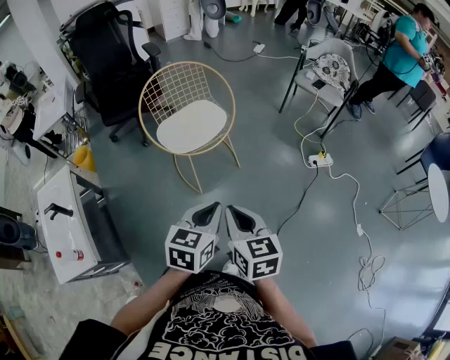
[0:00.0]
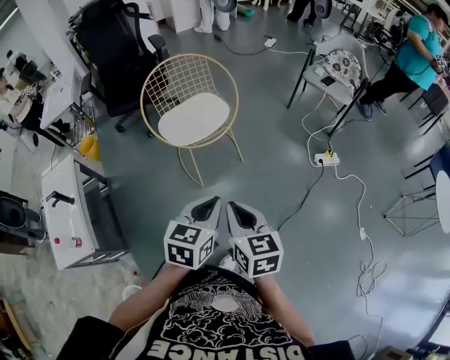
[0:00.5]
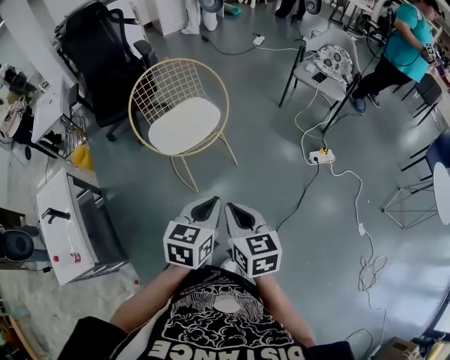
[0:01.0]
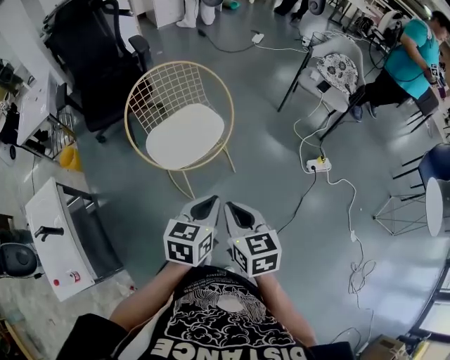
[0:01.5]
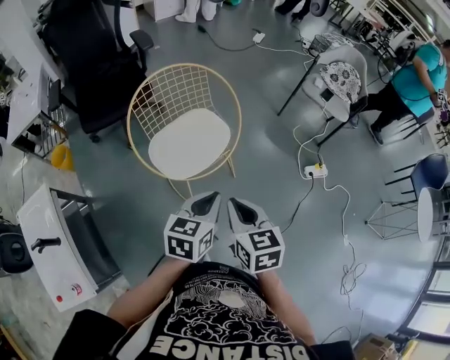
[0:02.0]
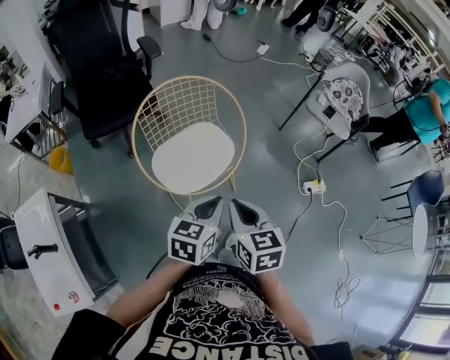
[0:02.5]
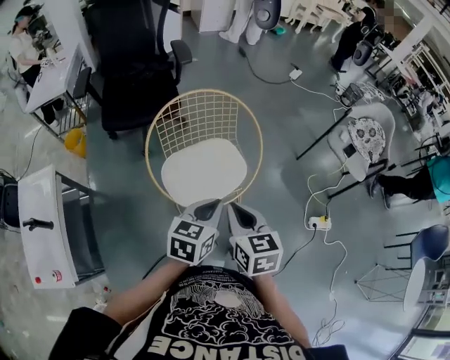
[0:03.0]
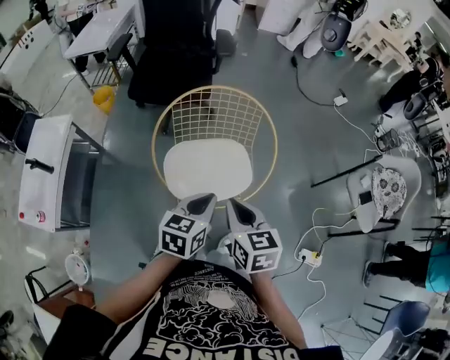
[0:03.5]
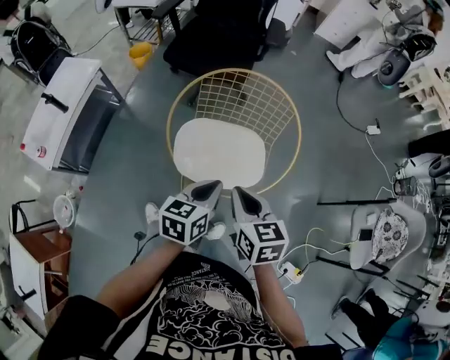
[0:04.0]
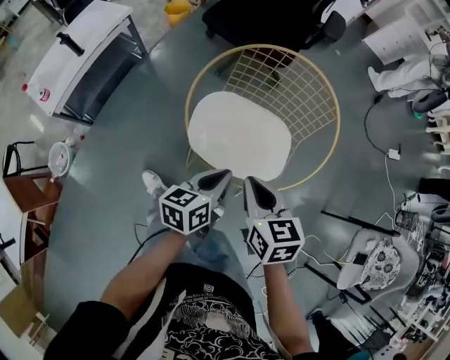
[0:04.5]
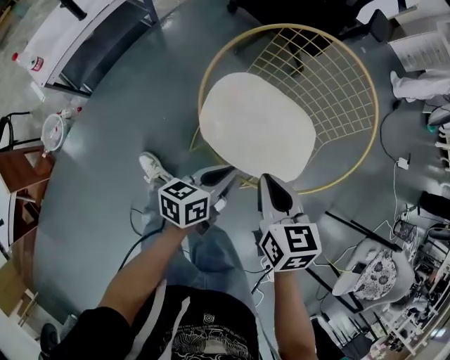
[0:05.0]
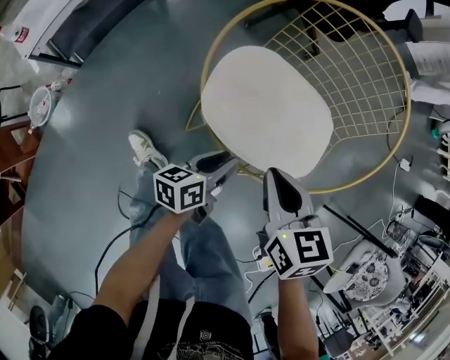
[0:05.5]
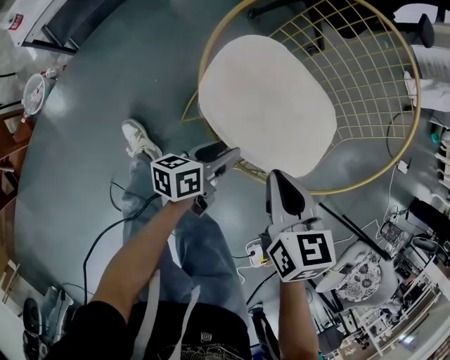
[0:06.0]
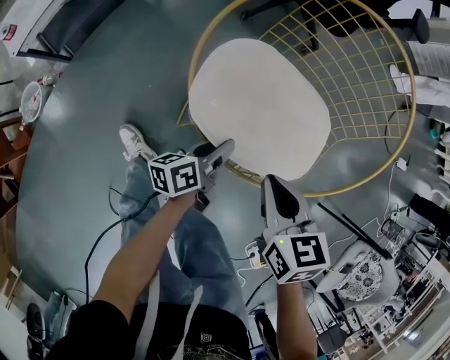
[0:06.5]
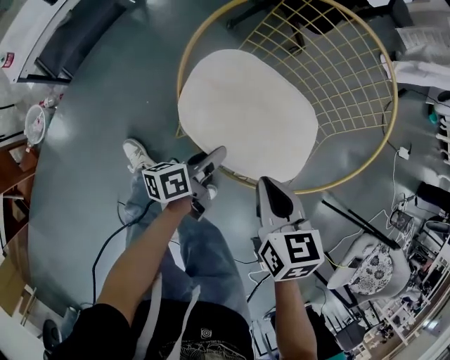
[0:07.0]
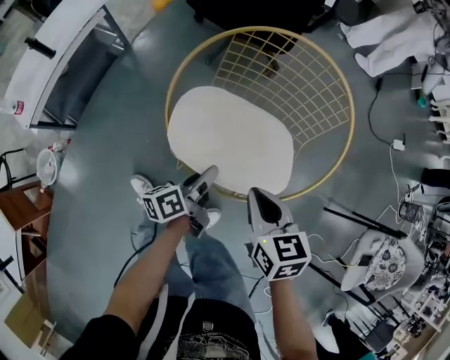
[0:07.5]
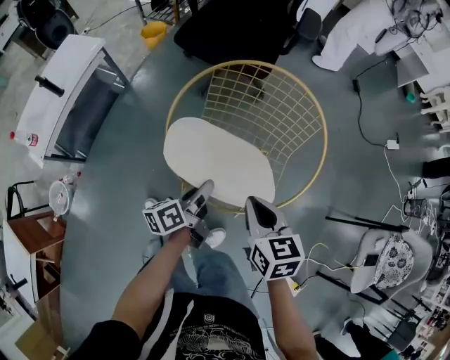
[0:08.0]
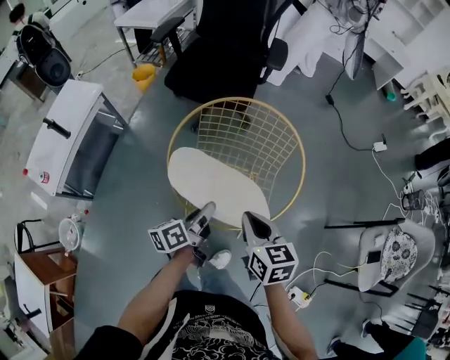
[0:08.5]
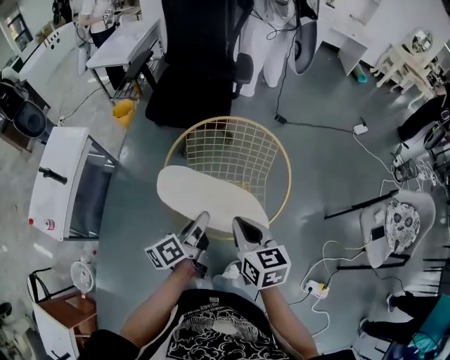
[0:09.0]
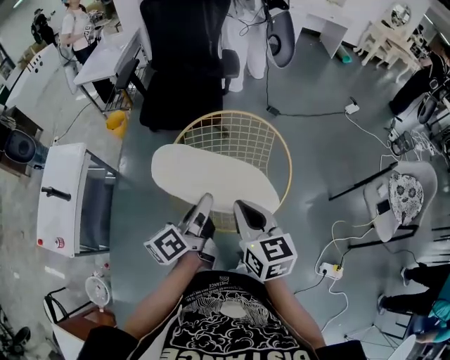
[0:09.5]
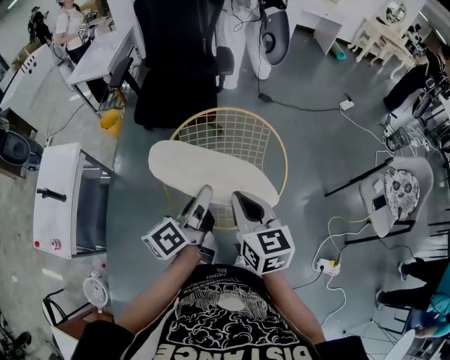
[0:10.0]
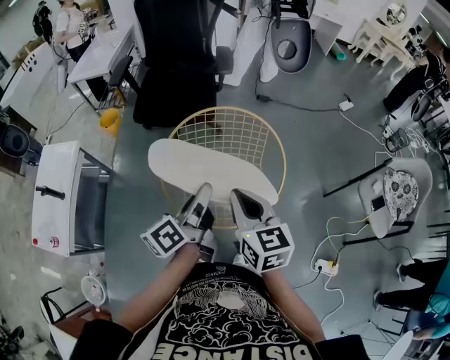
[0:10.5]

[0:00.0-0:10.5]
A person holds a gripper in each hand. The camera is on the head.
0:00.0 to 0:02.0: Both grippers move forward, roughly 25 cm.
0:02.0 to 0:04.0: The right gripper ends up roughly 20 cm from where it was, and swivels approximately 50 degrees. Meanwhile the left gripper moves about 20 cm, and changes its angle by approximately 50 degrees.
0:04.0 to 0:06.5: The left gripper heads downward, covering roughly 30 cm, twists about 40 degrees counterclockwise, seen from behind, and opens up, while the right gripper goes about 20 cm downward, and swivels some 20 degrees.
0:06.5 to 0:08.5: The grippers both shift upward by roughly 20 cm. The right gripper turns by approximately 20 degrees.
0:08.5 to 0:10.5: The right gripper travels upward and to the left by about 15 cm, and changes its angle by some 20 degrees. Meanwhile the left gripper shifts some 15 cm upward.

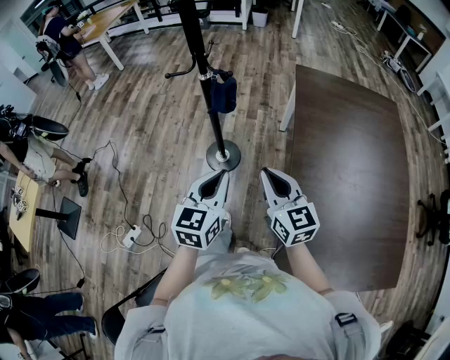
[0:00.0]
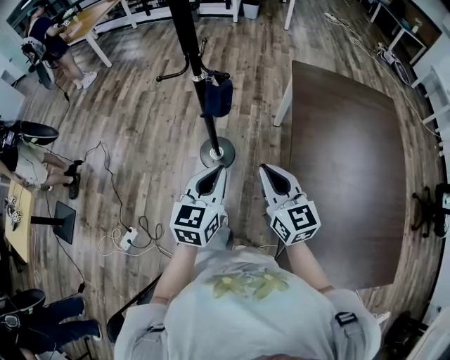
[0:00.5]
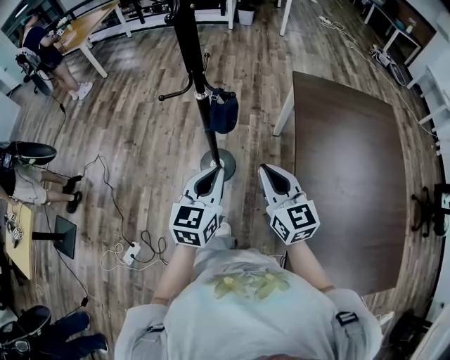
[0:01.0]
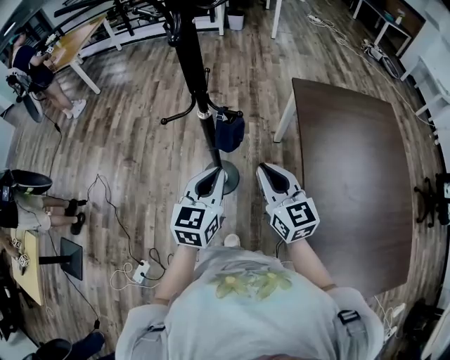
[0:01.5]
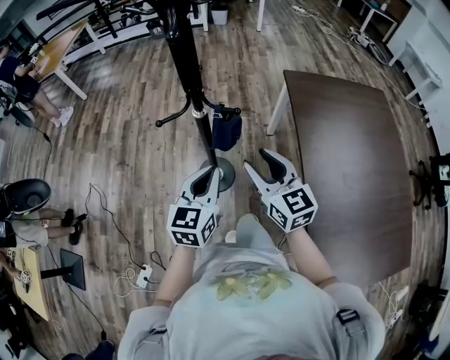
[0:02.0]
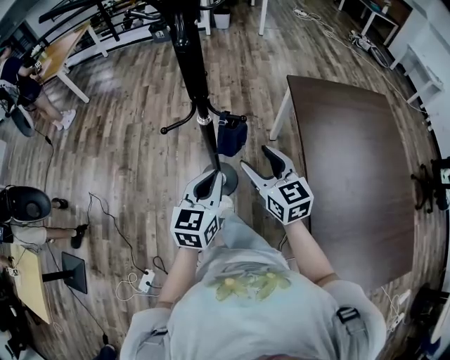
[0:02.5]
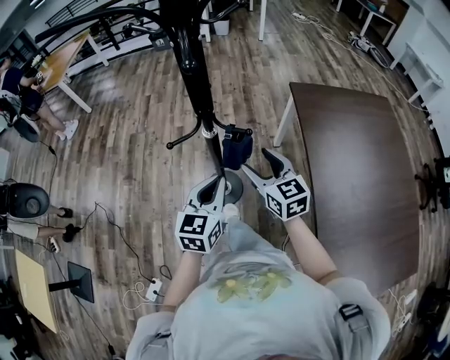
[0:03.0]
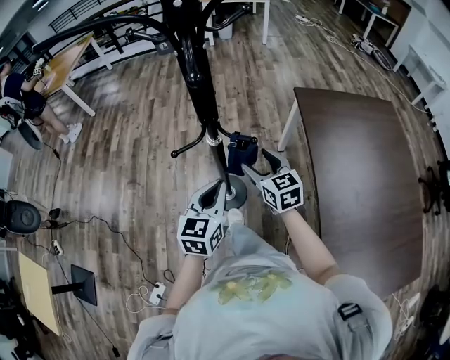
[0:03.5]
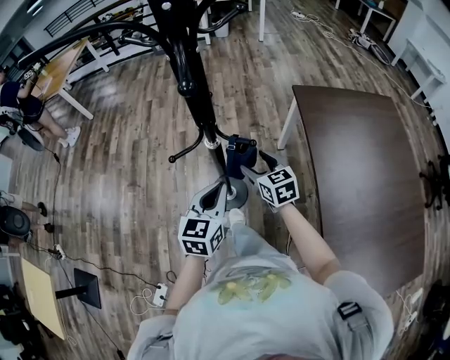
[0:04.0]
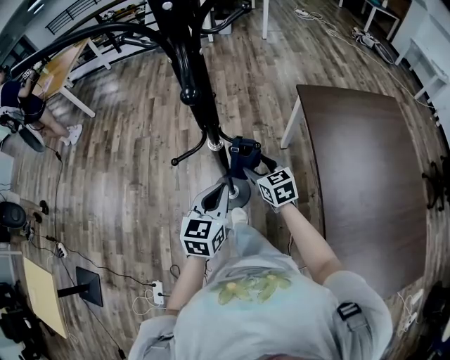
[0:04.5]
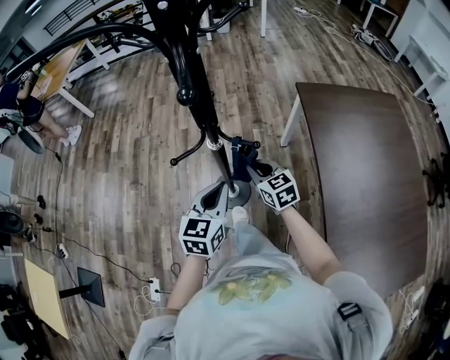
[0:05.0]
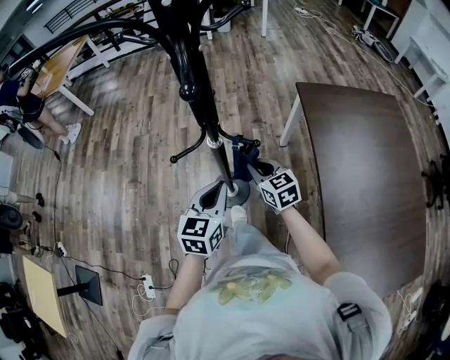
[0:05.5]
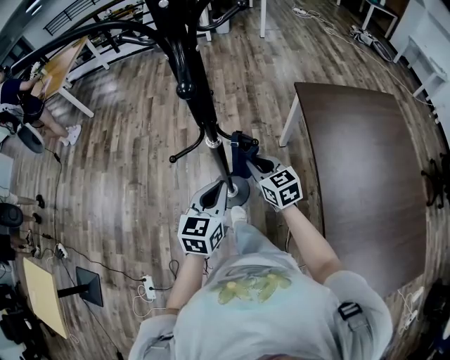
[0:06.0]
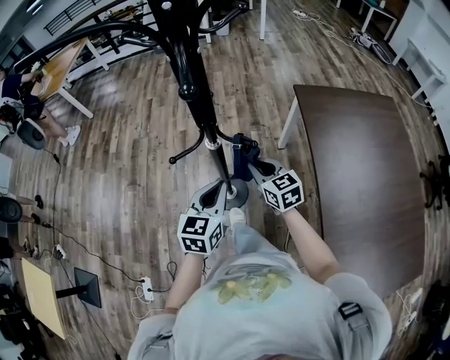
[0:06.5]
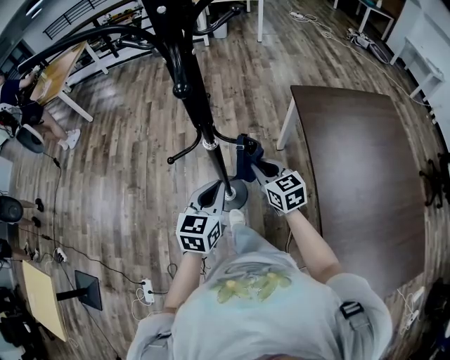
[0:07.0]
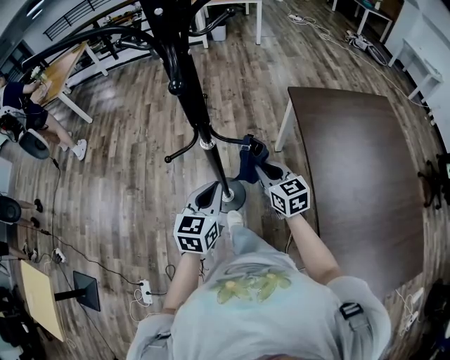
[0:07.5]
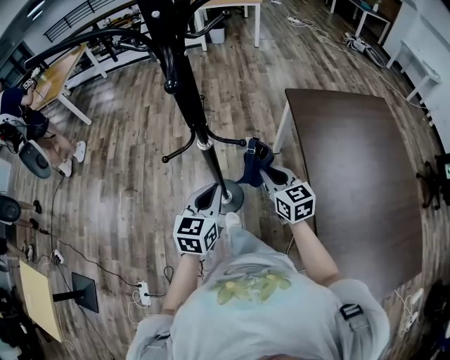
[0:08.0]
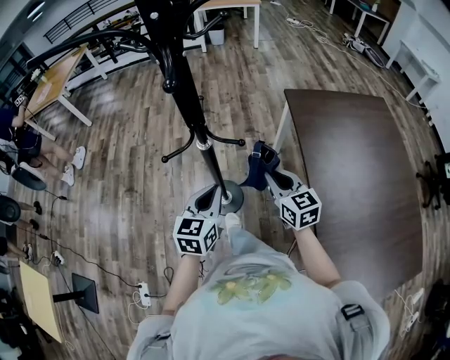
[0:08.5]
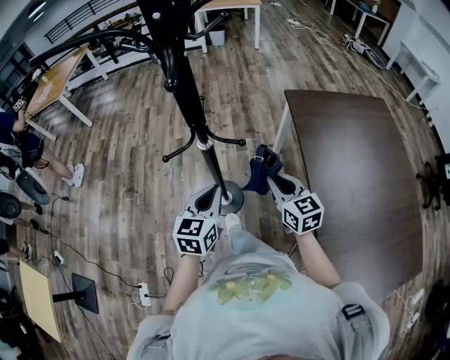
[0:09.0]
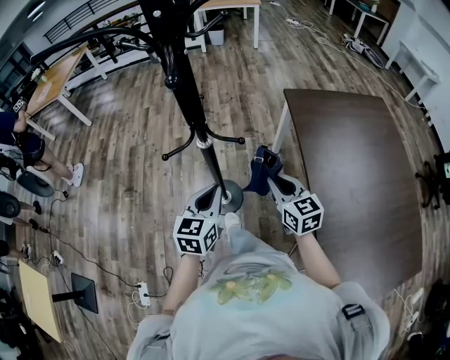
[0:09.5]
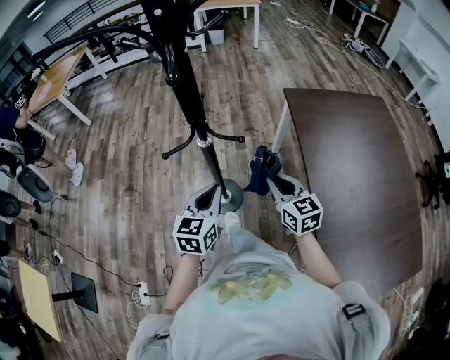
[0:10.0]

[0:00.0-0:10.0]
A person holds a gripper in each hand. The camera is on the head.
0:00.0 to 0:02.0: The two grippers go approximately 20 cm forward and to the left. The right gripper opens its fingers.
0:02.0 to 0:04.0: The left gripper travels forward by roughly 5 cm, while the right gripper travels forward and downward by some 20 cm, and opens its fingers.
0:04.0 to 0:06.0: The right gripper closes up.
0:06.0 to 0:08.0: The right gripper is displaced to the right and backward by about 10 cm.
0:08.0 to 0:10.0: The grippers stay close to where they were, moving slightly.

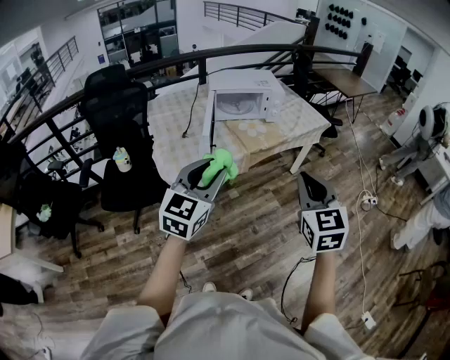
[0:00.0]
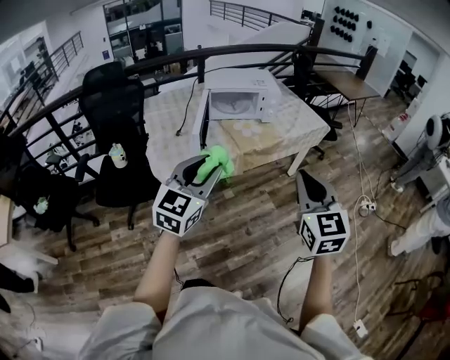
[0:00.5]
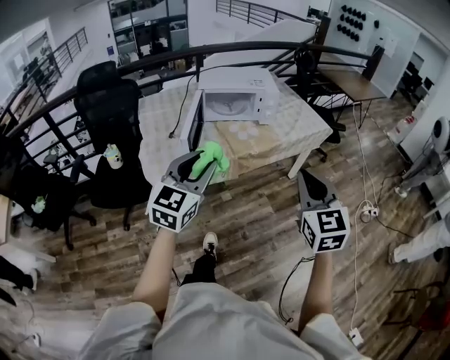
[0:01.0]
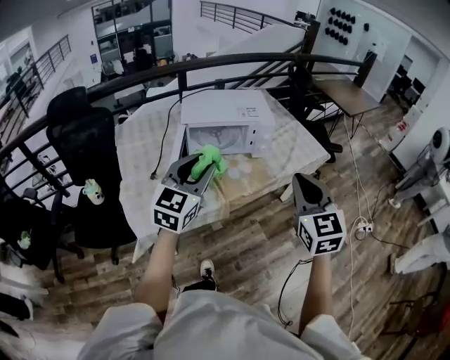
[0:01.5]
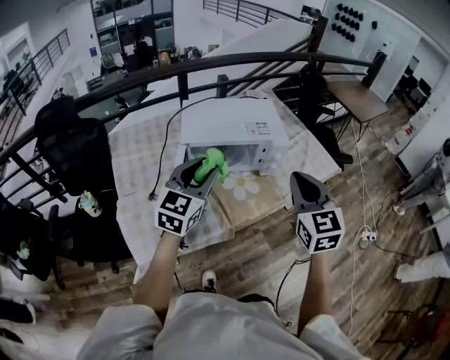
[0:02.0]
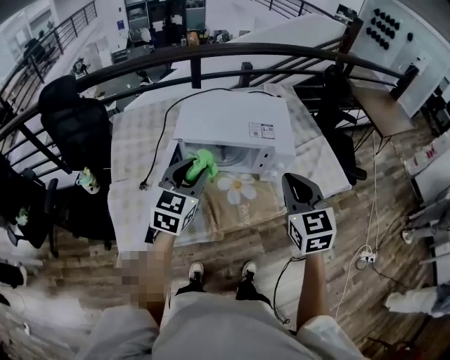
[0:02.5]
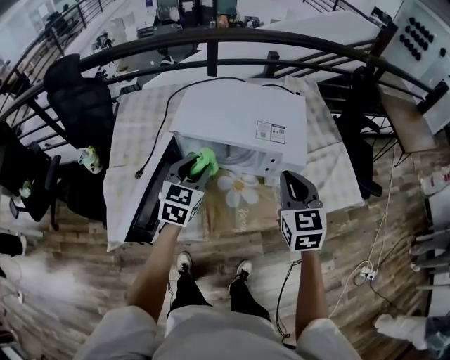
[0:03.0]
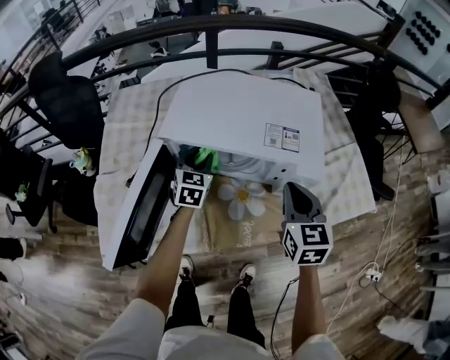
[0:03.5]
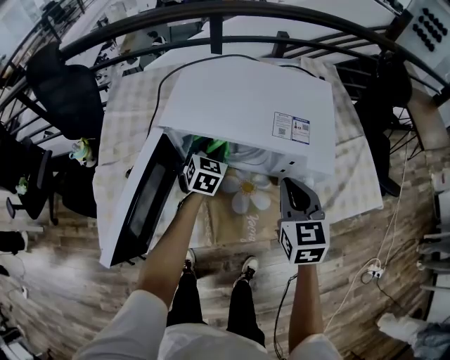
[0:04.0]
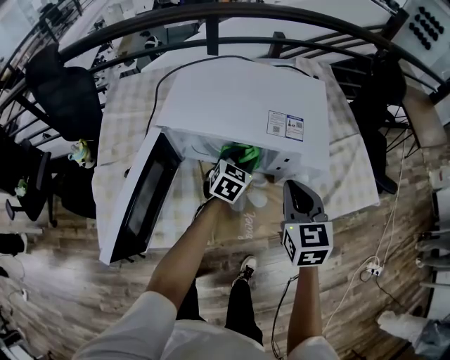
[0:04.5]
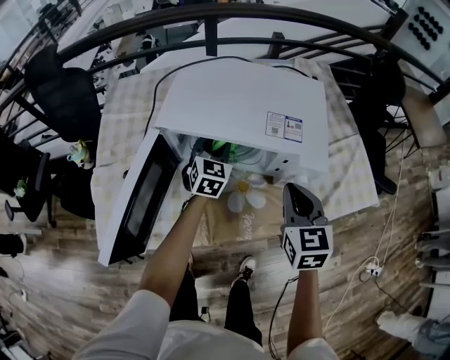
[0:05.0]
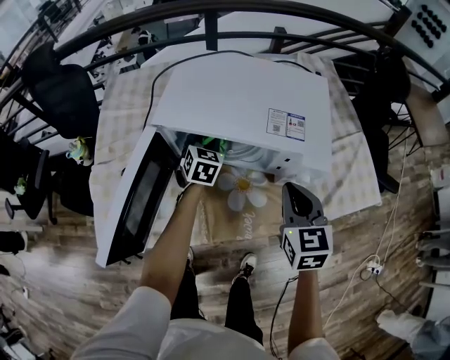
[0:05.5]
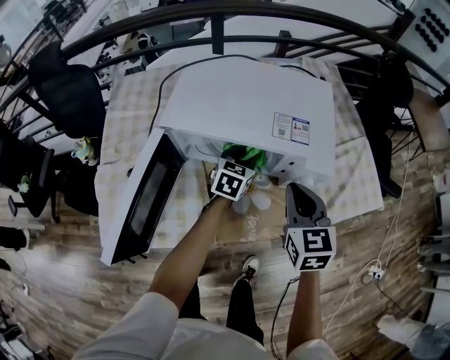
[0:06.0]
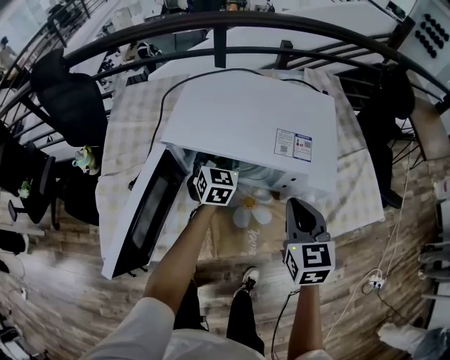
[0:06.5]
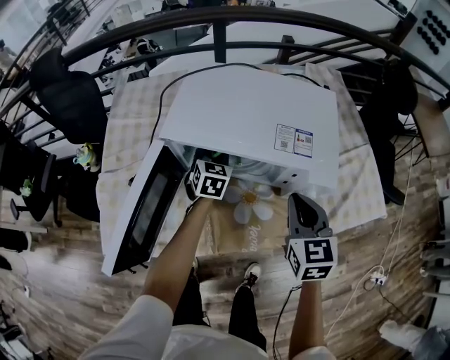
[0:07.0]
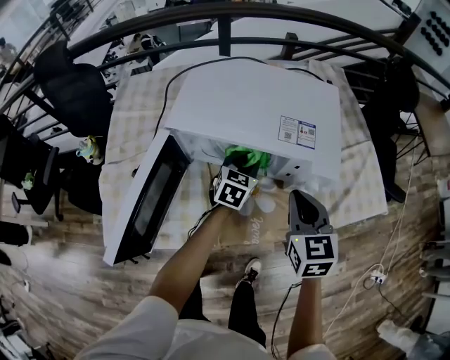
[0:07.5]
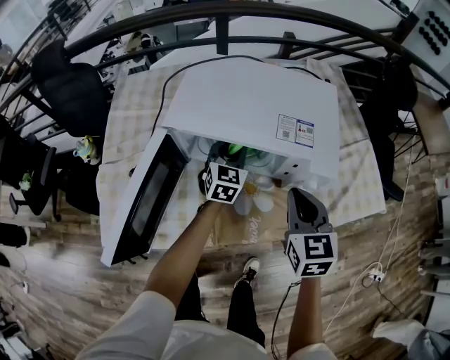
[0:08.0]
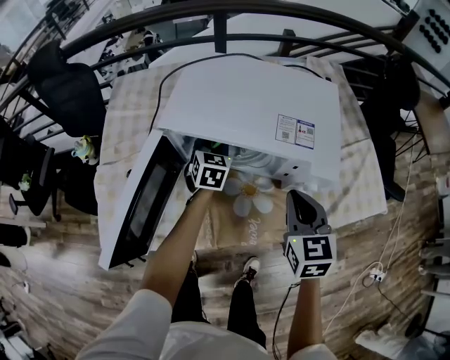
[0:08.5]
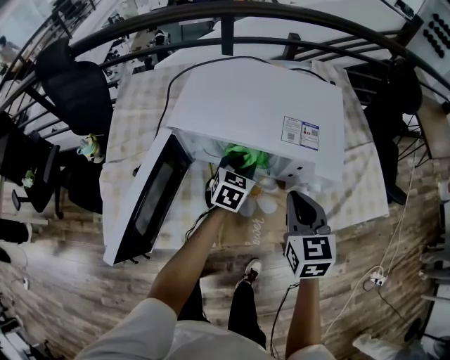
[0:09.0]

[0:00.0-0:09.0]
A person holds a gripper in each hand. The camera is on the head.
0:00.0 to 0:02.0: Both grippers are carried forward, some 50 cm.
0:02.0 to 0:04.5: The right gripper shifts some 30 cm downward and forward, and turns by about 20 degrees, while the left gripper shifts roughly 40 cm downward, forward and to the right, and rotates roughly 30 degrees.
0:04.5 to 0:07.0: The left gripper moves left and right over roughly 10 cm, changing direction 2 times, and swivels some 20 degrees.
0:07.0 to 0:09.0: The left gripper goes left and right, approximately 10 cm each way, reversing 2 times.
